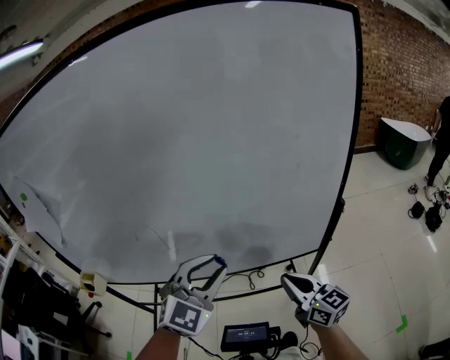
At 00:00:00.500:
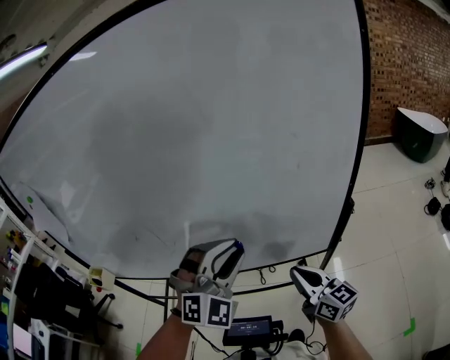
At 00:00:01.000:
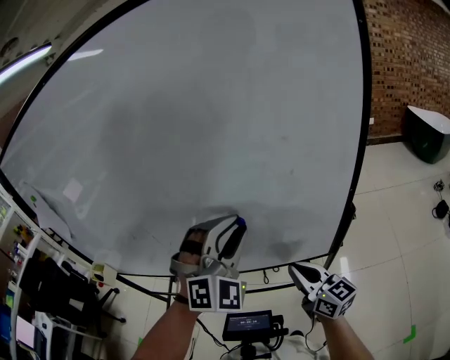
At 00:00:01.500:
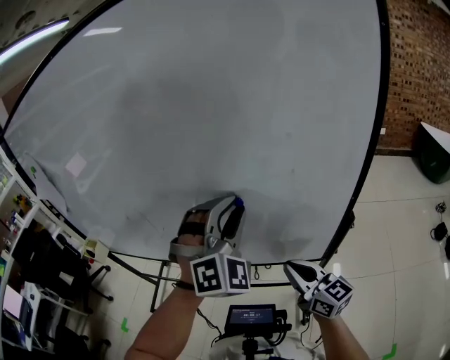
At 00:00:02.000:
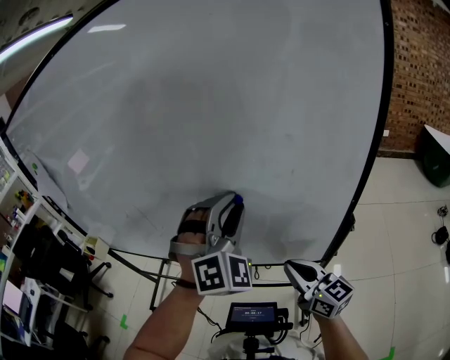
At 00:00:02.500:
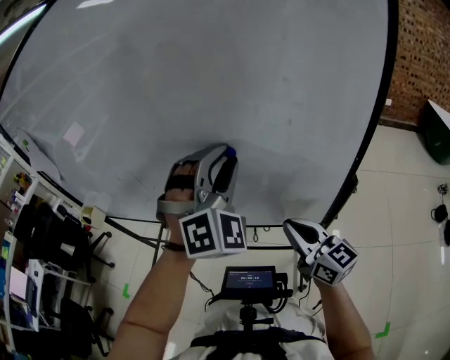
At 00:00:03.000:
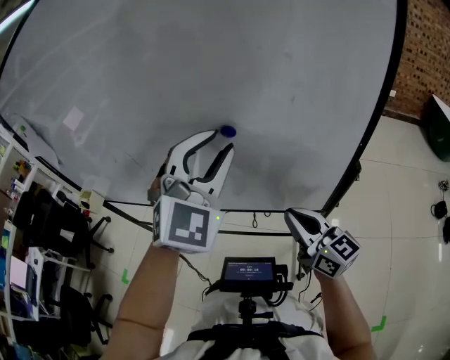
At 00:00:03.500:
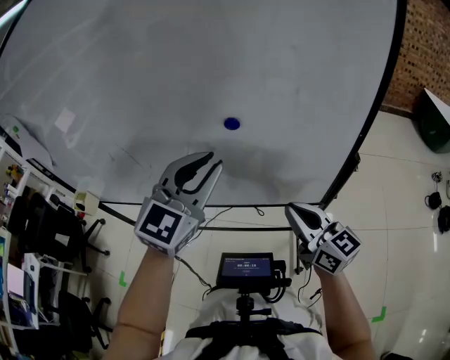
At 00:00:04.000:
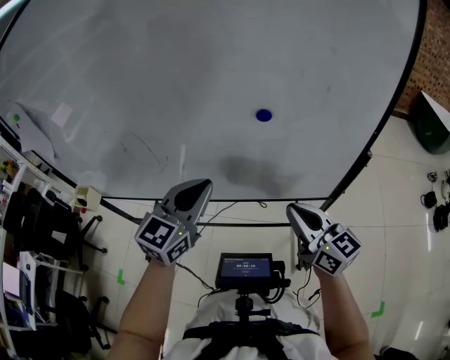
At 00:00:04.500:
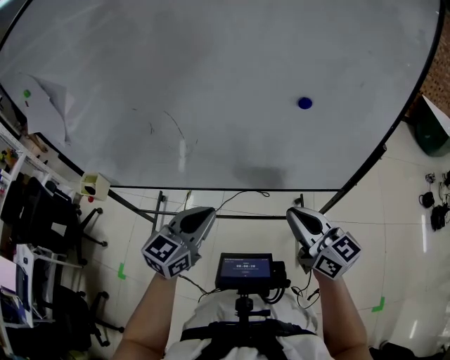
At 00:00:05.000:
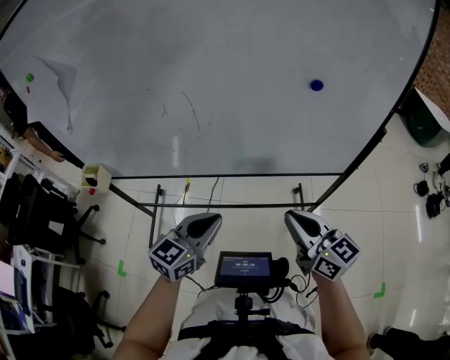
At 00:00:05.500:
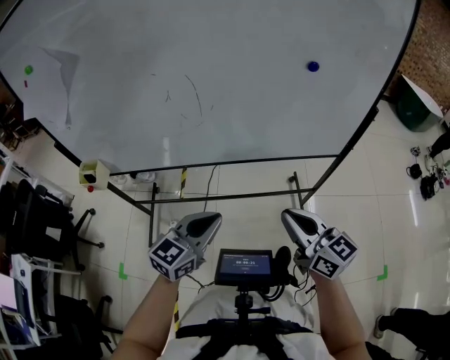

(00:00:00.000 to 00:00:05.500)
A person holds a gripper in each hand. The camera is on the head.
00:00:00.000 - 00:00:02.000: The right gripper goes roughly 10 cm to the right and forward. Meanwhile the left gripper moves to the right and forward, about 20 cm, and turns by approximately 40 degrees.
00:00:02.000 - 00:00:03.500: The left gripper goes roughly 5 cm to the left, and rotates around the line of its fingers by some 40 degrees, counterclockwise from behind.
00:00:03.500 - 00:00:05.500: The right gripper is displaced to the left and backward by about 30 cm; the left gripper travels to the left, backward and downward by some 40 cm, and changes its angle by approximately 30 degrees.

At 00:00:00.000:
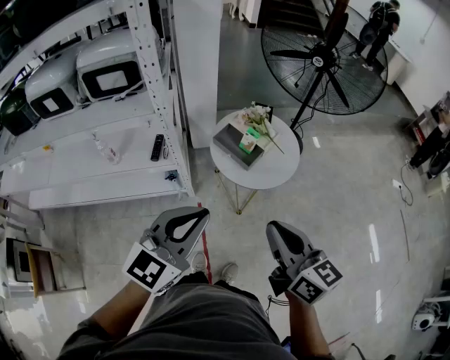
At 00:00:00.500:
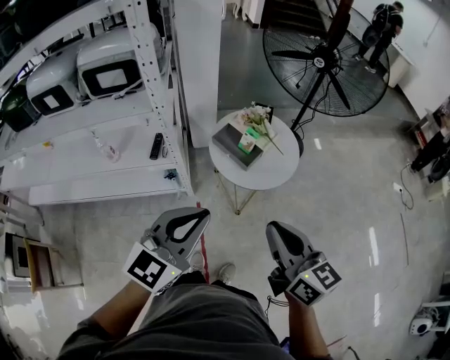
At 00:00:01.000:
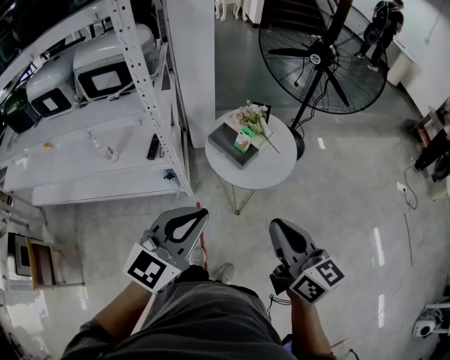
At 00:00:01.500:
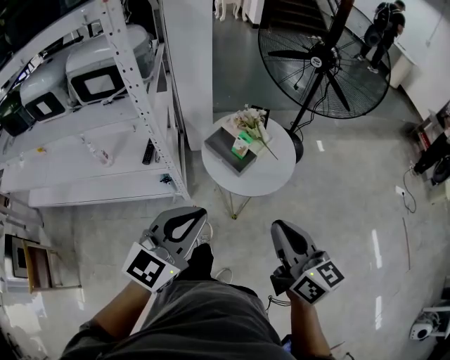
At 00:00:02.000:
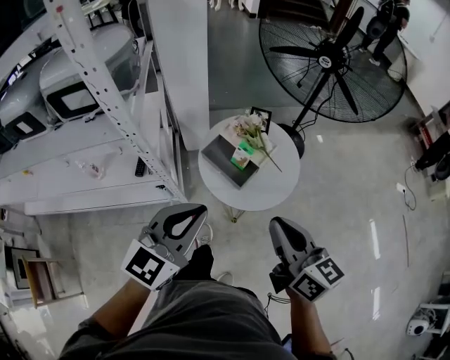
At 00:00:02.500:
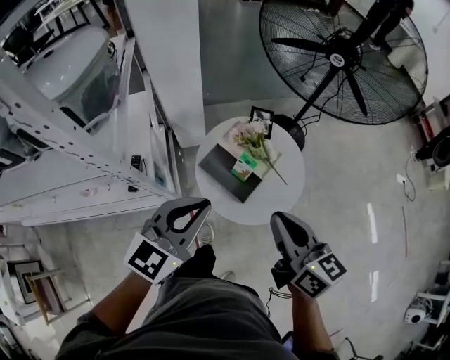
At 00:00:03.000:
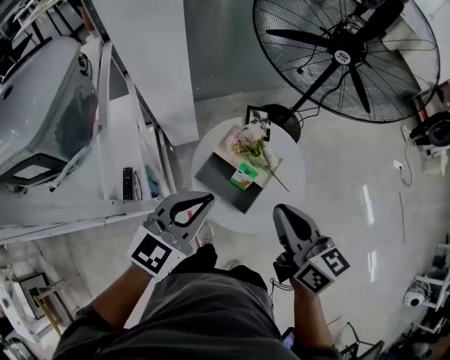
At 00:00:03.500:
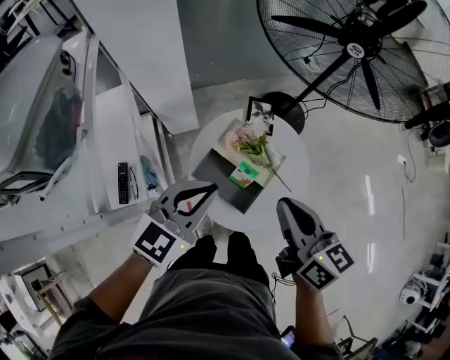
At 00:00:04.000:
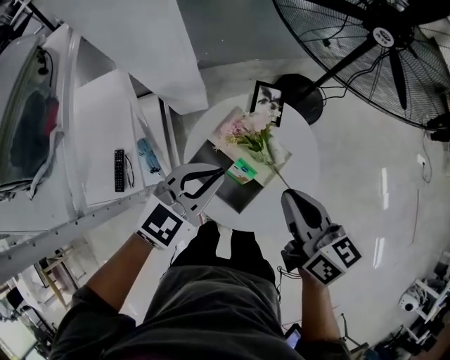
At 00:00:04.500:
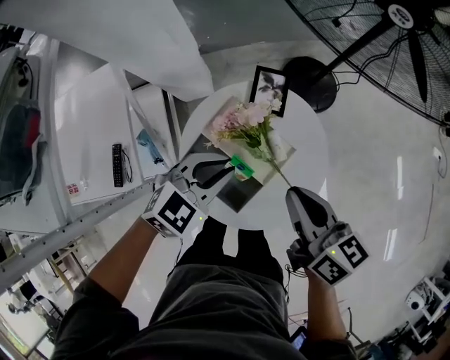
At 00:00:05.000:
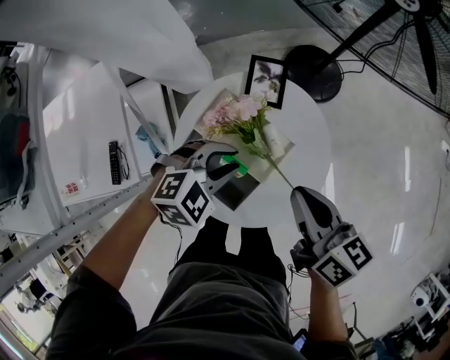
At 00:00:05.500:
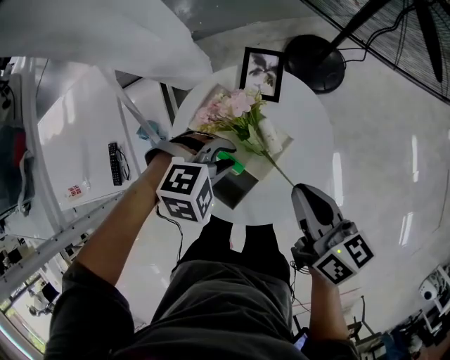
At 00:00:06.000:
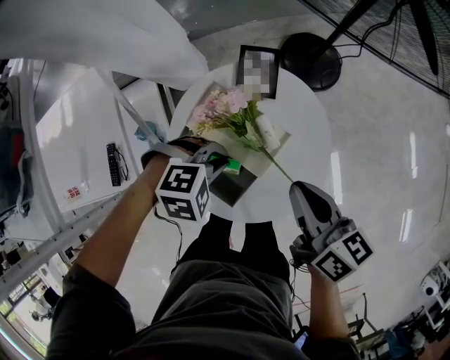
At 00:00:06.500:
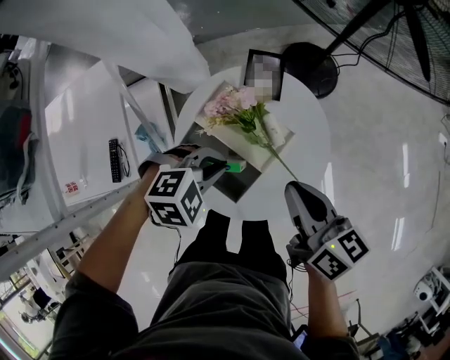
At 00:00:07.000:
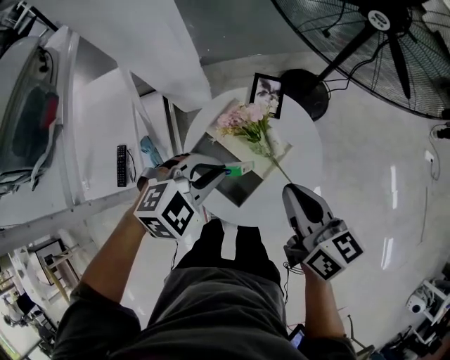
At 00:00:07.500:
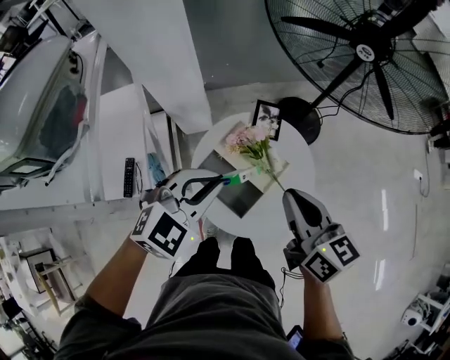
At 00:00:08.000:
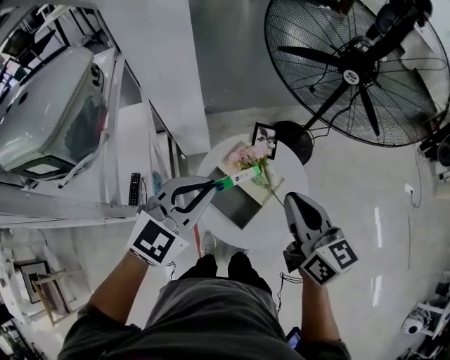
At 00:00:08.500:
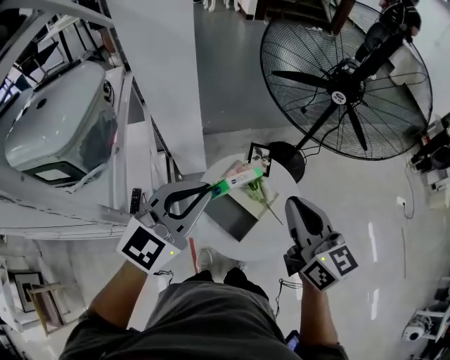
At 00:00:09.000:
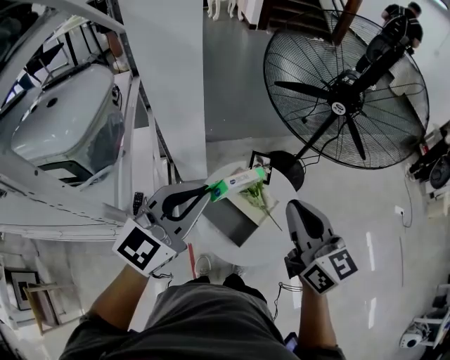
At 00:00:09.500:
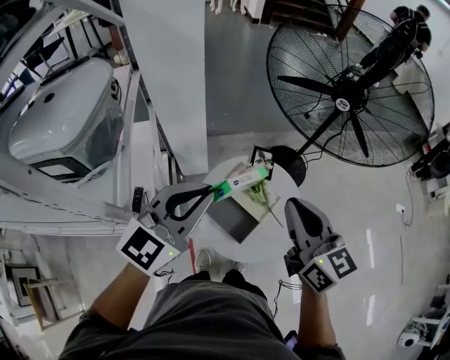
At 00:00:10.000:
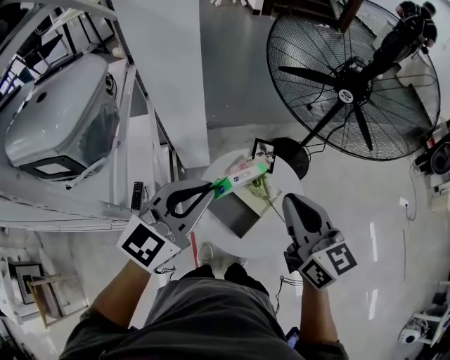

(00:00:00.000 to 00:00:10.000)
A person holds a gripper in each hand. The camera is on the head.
00:00:00.000 - 00:00:02.000: Both grippers travel together forward, about 15 cm.
00:00:02.000 - 00:00:04.000: Both grippers travel together forward and downward, roughly 35 cm.
00:00:04.000 - 00:00:06.000: The right gripper goes about 10 cm downward and to the right. The left gripper moves downward, about 15 cm, points its fingers roughly 50 degrees further downward, and opens, then closes once more.
00:00:06.000 - 00:00:08.000: The right gripper goes some 20 cm upward and to the left, and rotates roughly 30 degrees; the left gripper travels upward by about 30 cm, and angles its fingers upward, by some 50 degrees.
00:00:08.000 - 00:00:10.000: The grippers both shift upward by roughly 5 cm.

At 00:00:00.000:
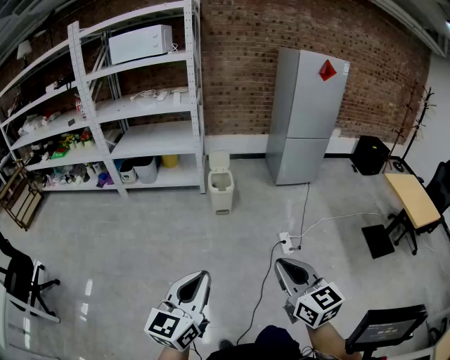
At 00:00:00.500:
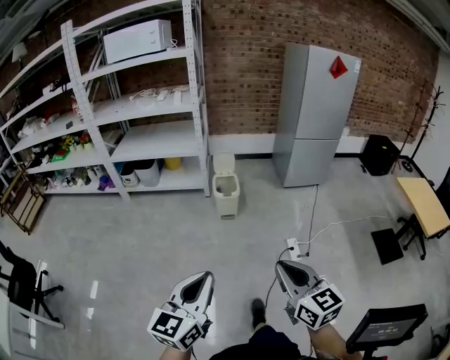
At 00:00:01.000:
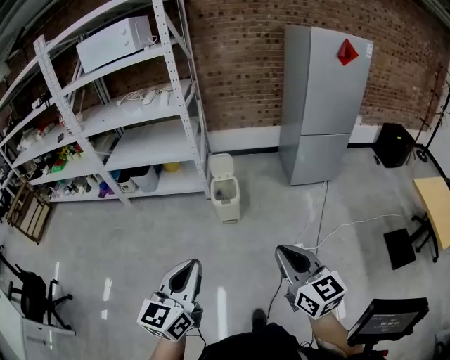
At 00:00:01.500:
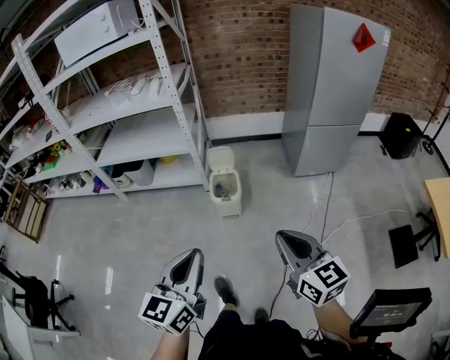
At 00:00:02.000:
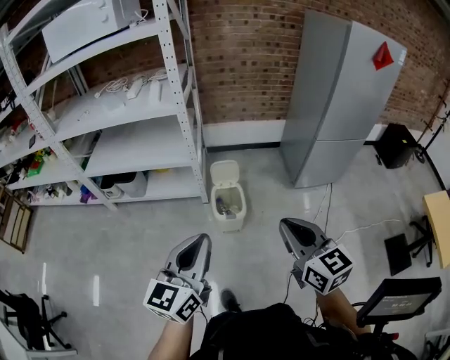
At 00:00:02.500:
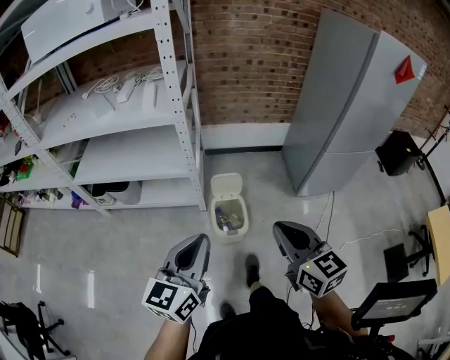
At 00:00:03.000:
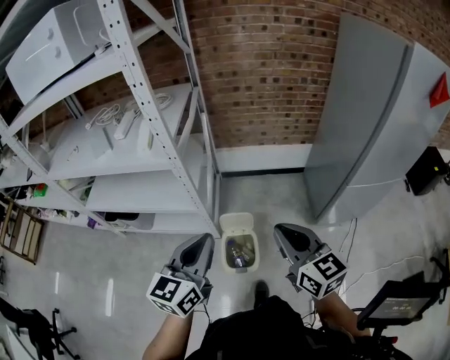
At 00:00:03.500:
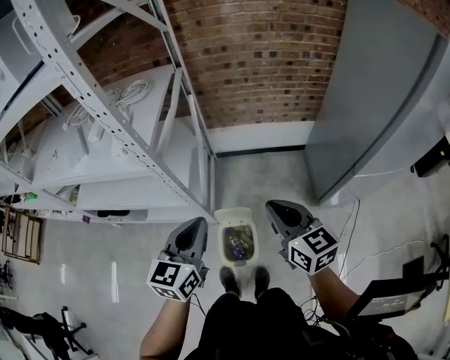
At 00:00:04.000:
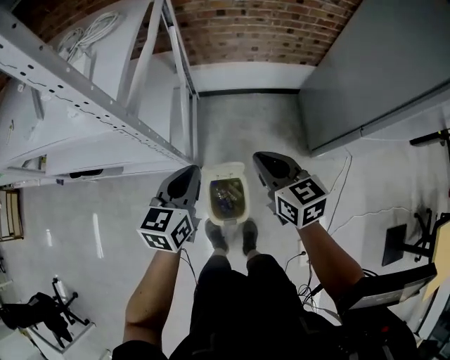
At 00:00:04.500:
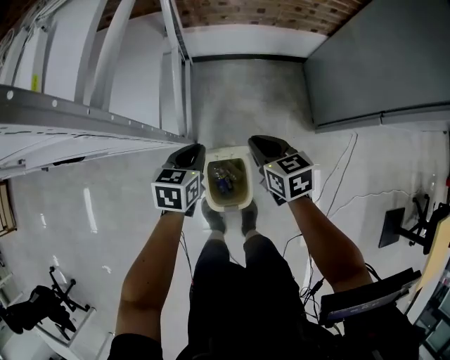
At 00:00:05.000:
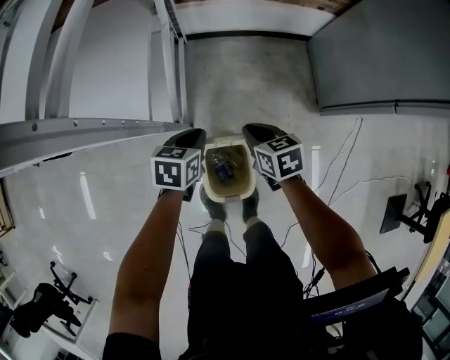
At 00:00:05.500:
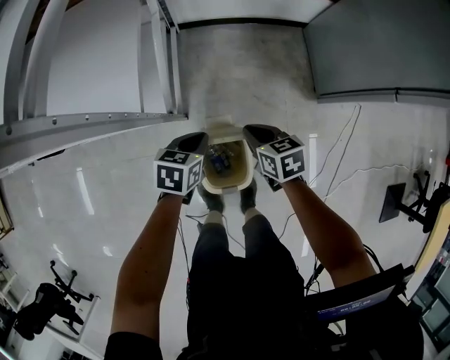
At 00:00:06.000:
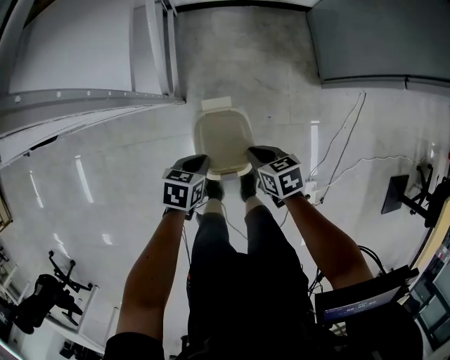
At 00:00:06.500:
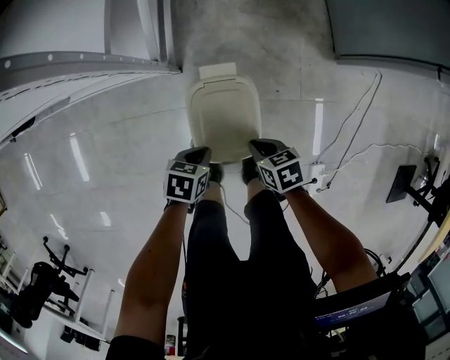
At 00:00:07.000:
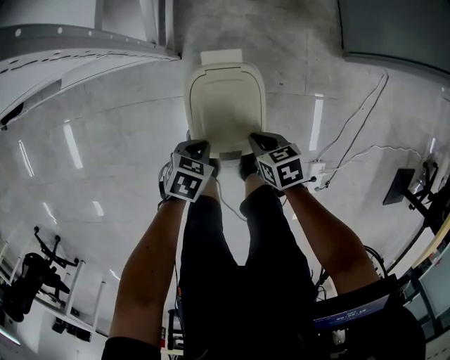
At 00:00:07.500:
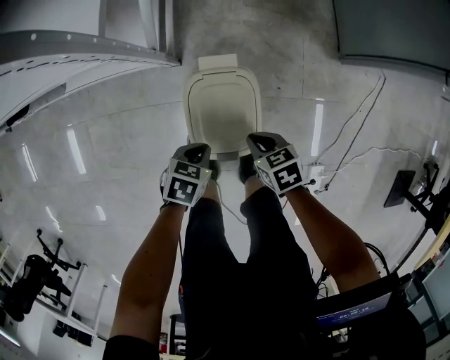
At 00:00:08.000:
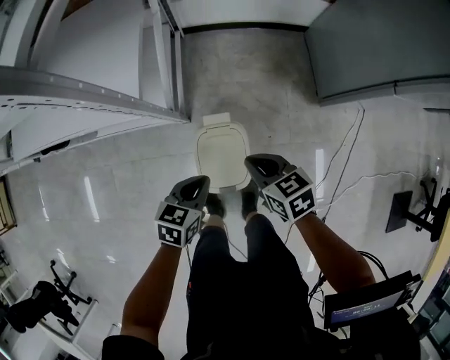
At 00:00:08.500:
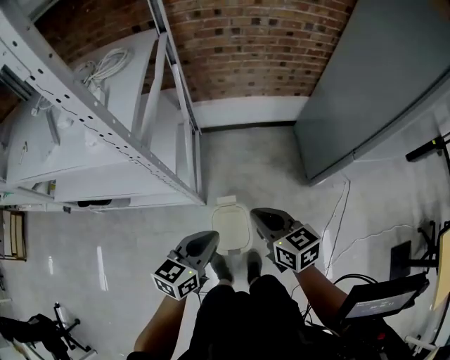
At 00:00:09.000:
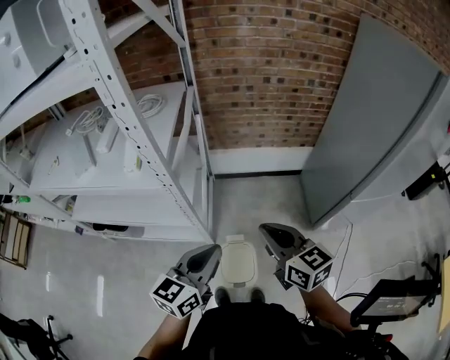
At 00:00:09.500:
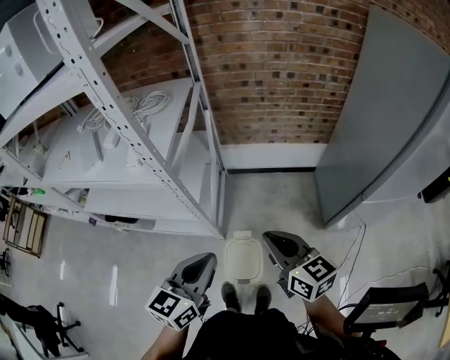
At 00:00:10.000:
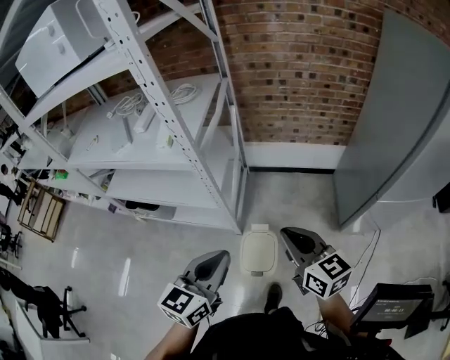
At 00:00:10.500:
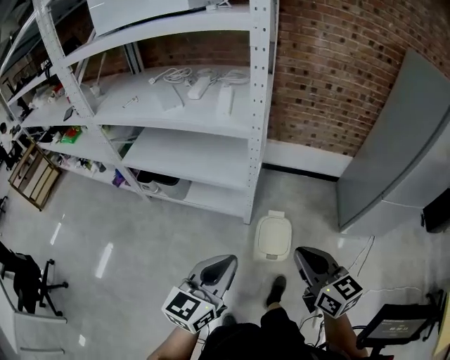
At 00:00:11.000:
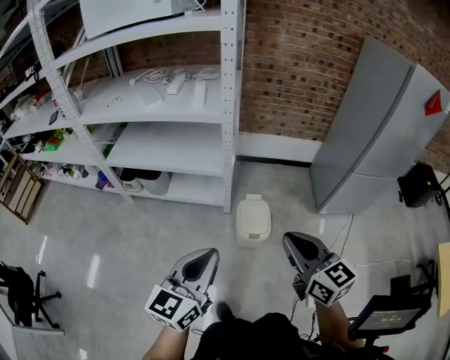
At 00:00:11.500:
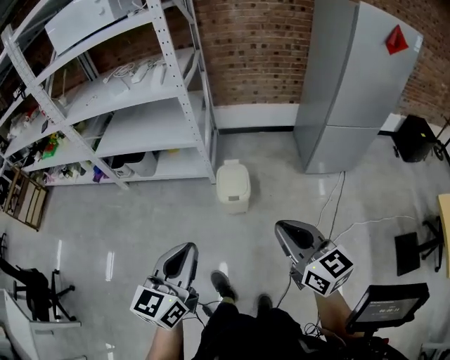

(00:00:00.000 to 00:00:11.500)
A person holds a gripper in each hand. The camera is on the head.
00:00:00.000 - 00:00:02.000: The two grippers travel together, forward, roughly 60 cm.
00:00:02.000 - 00:00:04.000: Both grippers are carried forward, roughly 50 cm. The left gripper changes its angle by about 20 degrees.
00:00:04.000 - 00:00:06.000: The two grippers go about 35 cm downward. The right gripper points its fingers approximately 30 degrees further downward. Meanwhile the left gripper tilts its fingers roughly 30 degrees downward.
00:00:06.000 - 00:00:07.500: Both grippers move downward, roughly 10 cm.
00:00:07.500 - 00:00:09.500: The grippers both shift upward by approximately 60 cm. The right gripper tilts its fingers about 50 degrees upward. Meanwhile the left gripper tips its fingers upward by about 50 degrees.
00:00:09.500 - 00:00:11.500: The pair of grippers is taken backward, about 50 cm.
